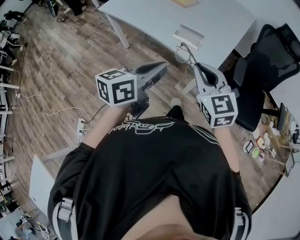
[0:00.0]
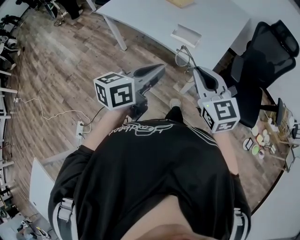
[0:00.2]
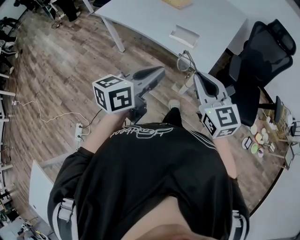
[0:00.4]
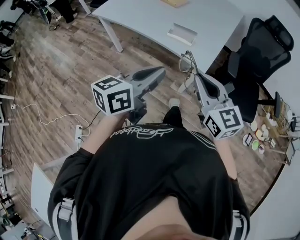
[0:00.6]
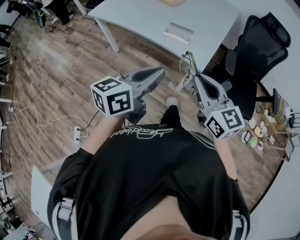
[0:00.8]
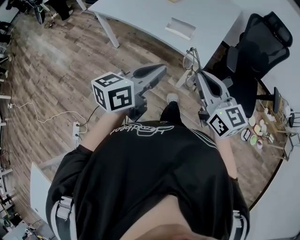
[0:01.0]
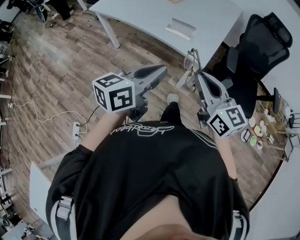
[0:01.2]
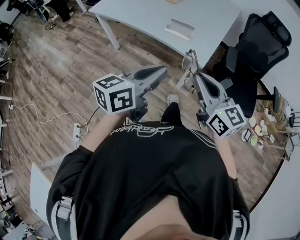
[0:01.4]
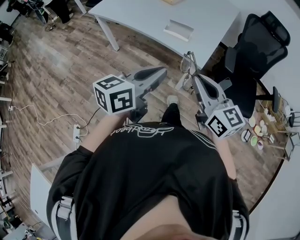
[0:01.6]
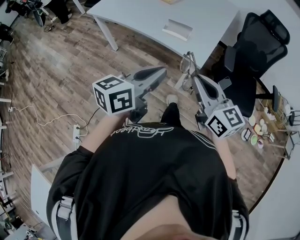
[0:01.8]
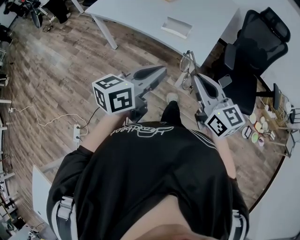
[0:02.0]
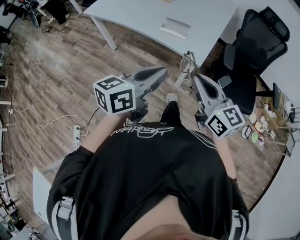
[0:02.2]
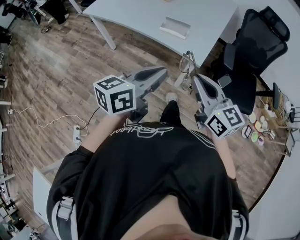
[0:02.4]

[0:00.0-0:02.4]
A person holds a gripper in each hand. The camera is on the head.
0:00.0 to 0:01.2: Both grippers travel together backward, roughly 10 cm. The right gripper rotates approximately 20 degrees.
0:01.2 to 0:02.4: The grippers move only a little.

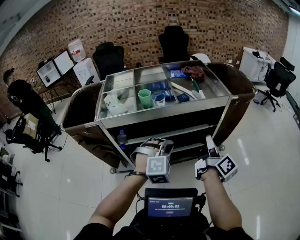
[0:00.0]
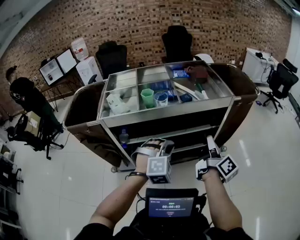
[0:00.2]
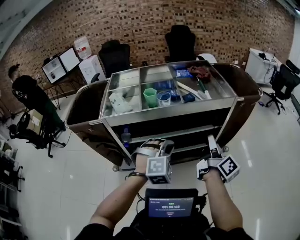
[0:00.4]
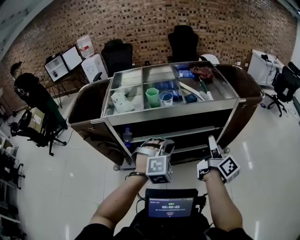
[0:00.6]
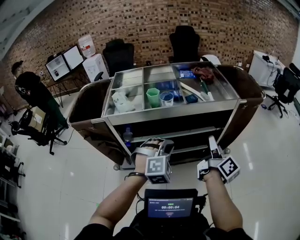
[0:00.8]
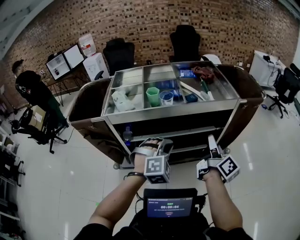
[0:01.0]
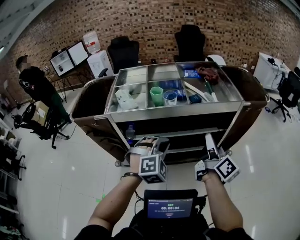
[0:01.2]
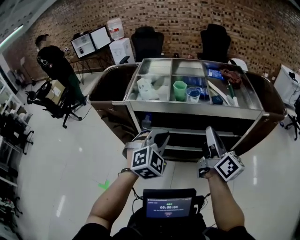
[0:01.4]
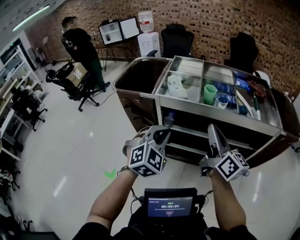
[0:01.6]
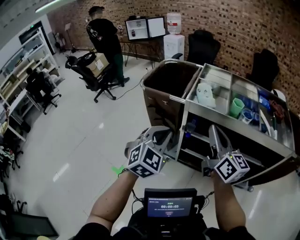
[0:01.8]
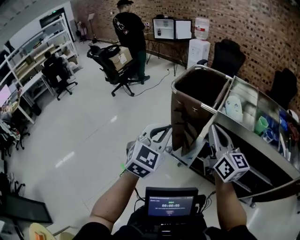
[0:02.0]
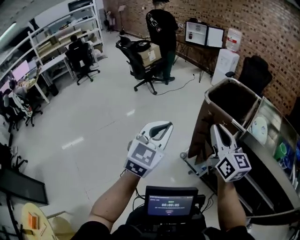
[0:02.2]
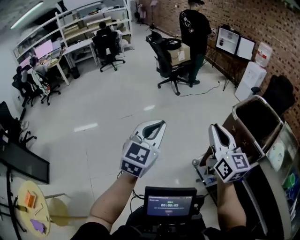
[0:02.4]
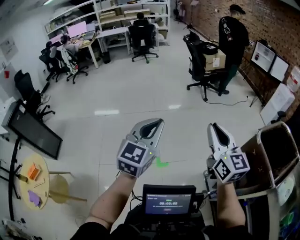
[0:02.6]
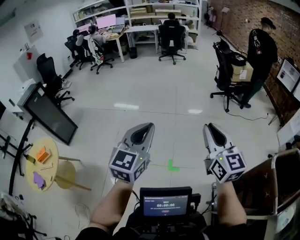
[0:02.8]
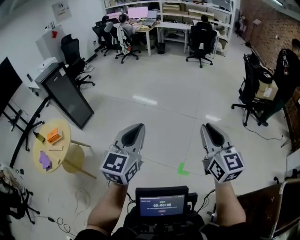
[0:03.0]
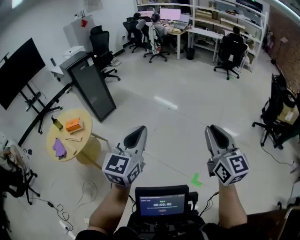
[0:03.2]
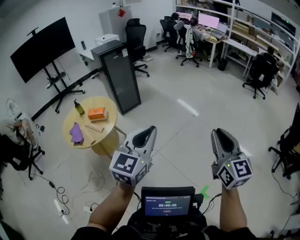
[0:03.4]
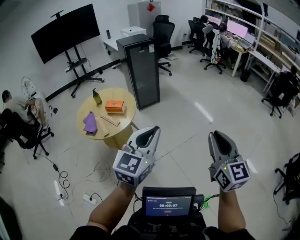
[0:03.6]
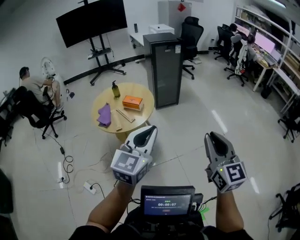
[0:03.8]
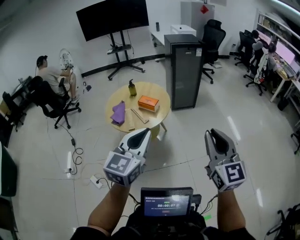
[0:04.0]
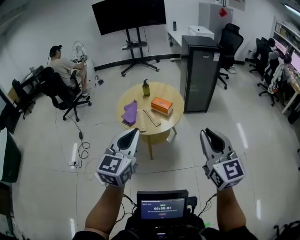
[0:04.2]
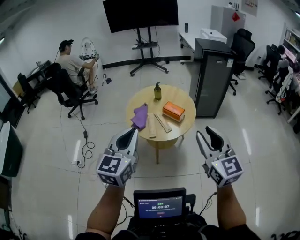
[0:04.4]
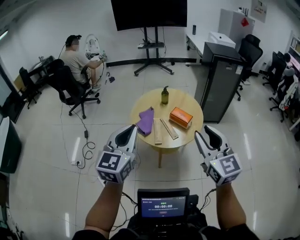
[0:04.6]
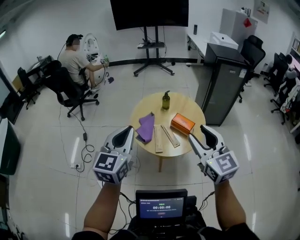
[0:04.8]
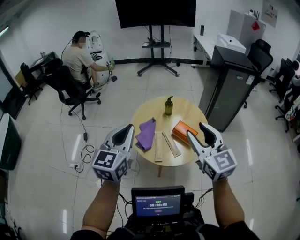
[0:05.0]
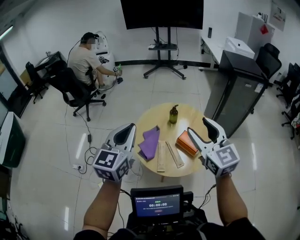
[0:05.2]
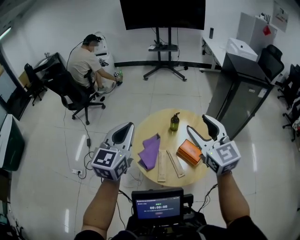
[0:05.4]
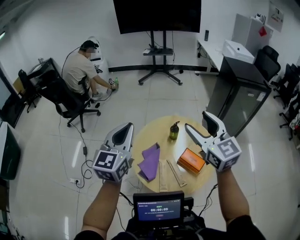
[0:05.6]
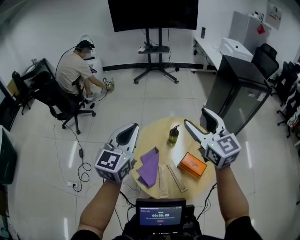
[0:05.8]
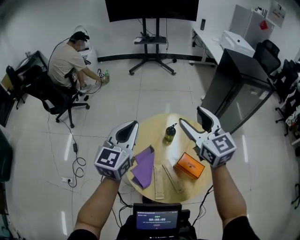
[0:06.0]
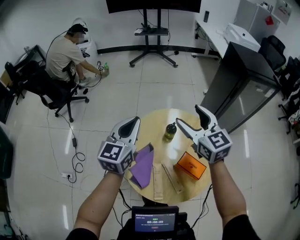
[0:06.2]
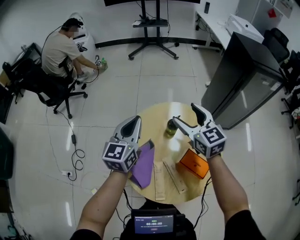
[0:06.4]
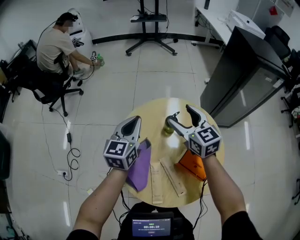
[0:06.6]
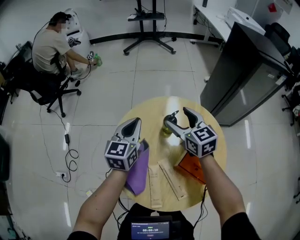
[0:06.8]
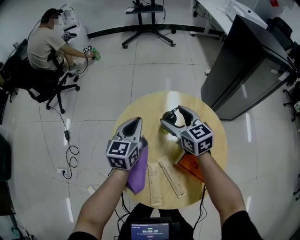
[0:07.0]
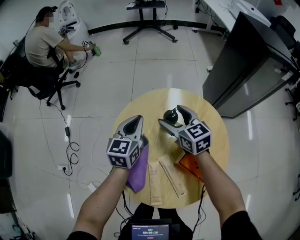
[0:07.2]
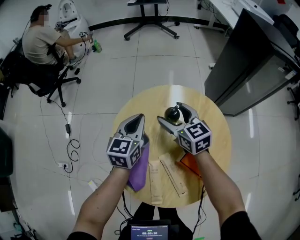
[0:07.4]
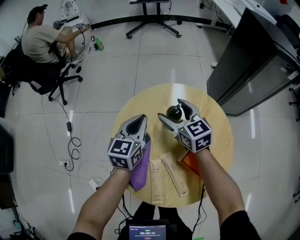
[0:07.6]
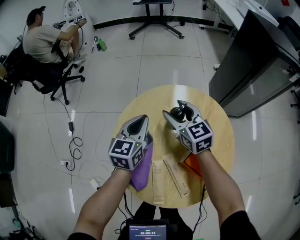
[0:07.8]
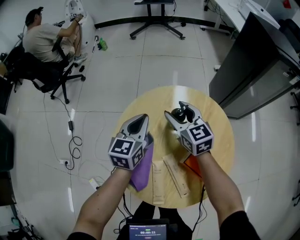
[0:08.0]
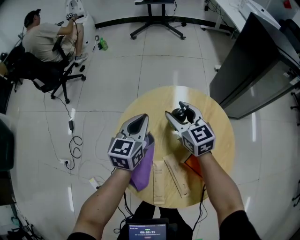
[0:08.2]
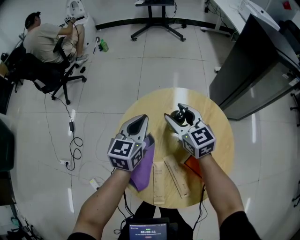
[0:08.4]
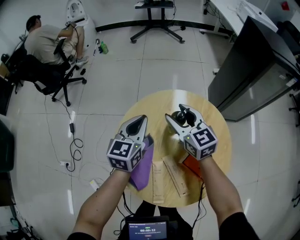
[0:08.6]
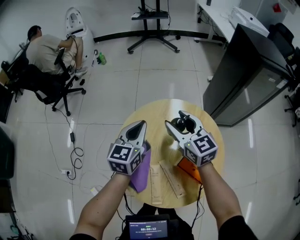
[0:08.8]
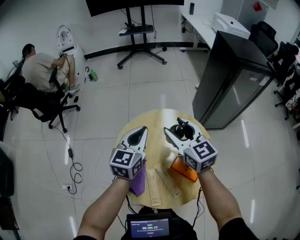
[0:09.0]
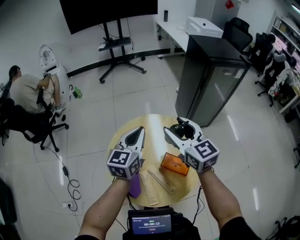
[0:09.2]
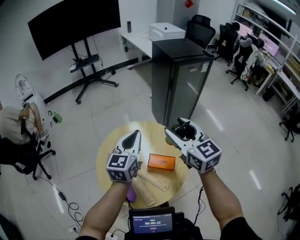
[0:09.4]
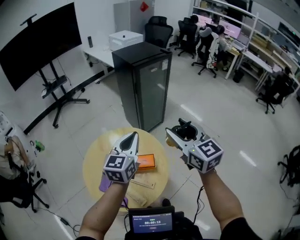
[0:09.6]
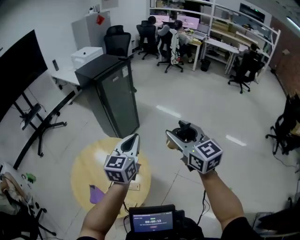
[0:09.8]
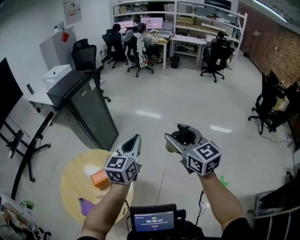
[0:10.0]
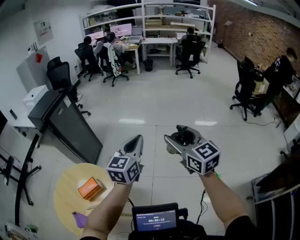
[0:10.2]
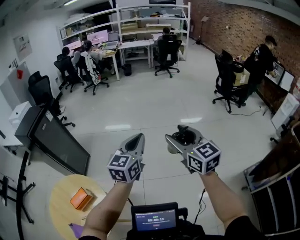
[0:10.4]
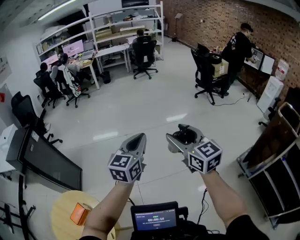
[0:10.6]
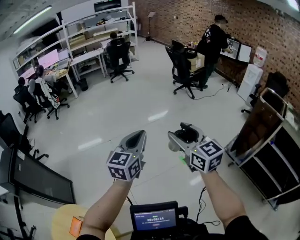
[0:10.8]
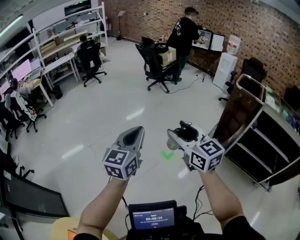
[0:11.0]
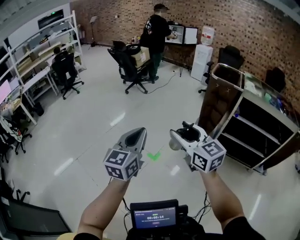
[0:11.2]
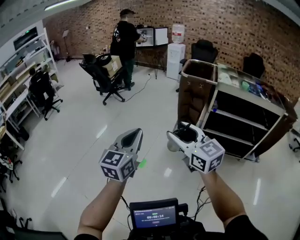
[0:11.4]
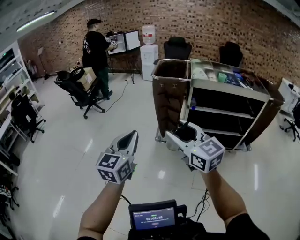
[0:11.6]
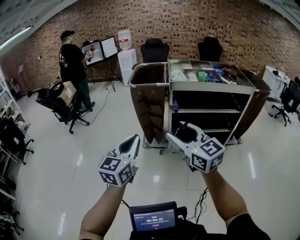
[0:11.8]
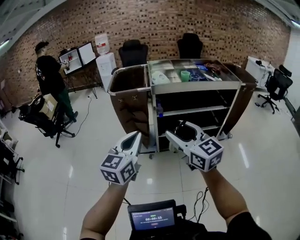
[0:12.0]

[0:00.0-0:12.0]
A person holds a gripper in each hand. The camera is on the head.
0:00.0 to 0:01.6: The left gripper moves about 30 cm, and changes its angle by about 40 degrees. The right gripper ends up roughly 35 cm from where it was, and rotates approximately 40 degrees.
0:01.6 to 0:03.0: Both grippers are carried approximately 1 m. The right gripper changes its angle by approximately 90 degrees; the left gripper swivels roughly 110 degrees.
0:03.0 to 0:04.4: The two grippers travel together, some 1 m. The left gripper swivels roughly 70 degrees. Meanwhile the right gripper rotates about 70 degrees.
0:04.4 to 0:06.0: The two grippers travel together, forward, approximately 1 m. The right gripper opens up.
0:06.0 to 0:07.6: The two grippers go about 50 cm downward and forward.
0:07.6 to 0:09.0: The two grippers go some 30 cm upward. The right gripper closes its fingers.
0:09.0 to 0:10.4: The two grippers travel together, some 1 m. The right gripper swivels some 90 degrees. Meanwhile the left gripper rotates some 90 degrees.
0:10.4 to 0:12.0: Both grippers are carried approximately 1 m. The left gripper turns by approximately 90 degrees. The right gripper rotates approximately 80 degrees.

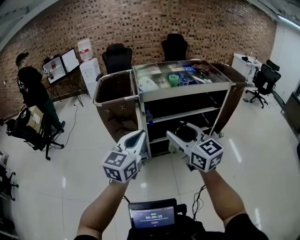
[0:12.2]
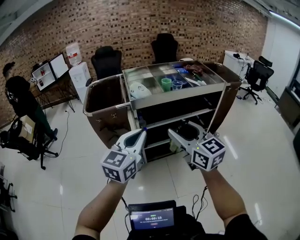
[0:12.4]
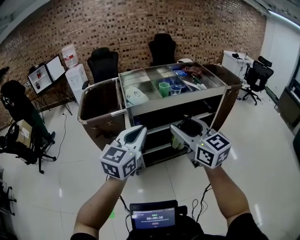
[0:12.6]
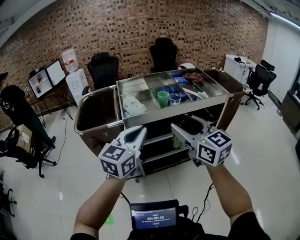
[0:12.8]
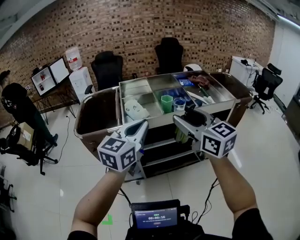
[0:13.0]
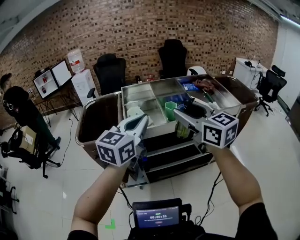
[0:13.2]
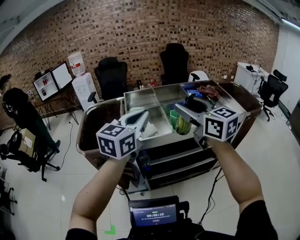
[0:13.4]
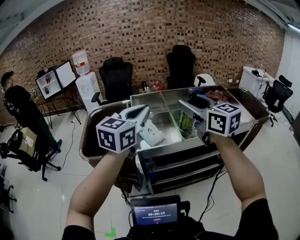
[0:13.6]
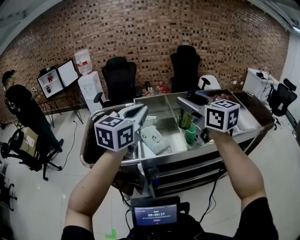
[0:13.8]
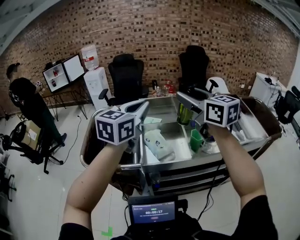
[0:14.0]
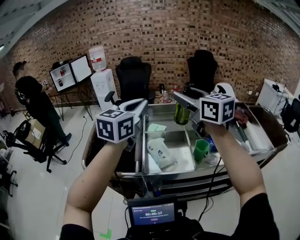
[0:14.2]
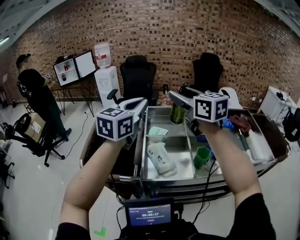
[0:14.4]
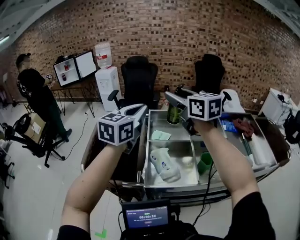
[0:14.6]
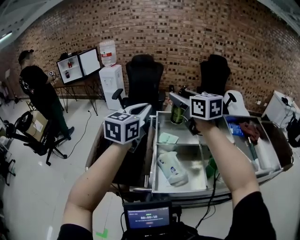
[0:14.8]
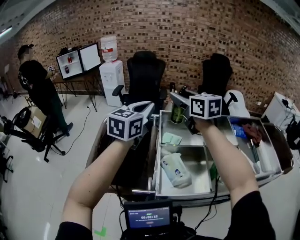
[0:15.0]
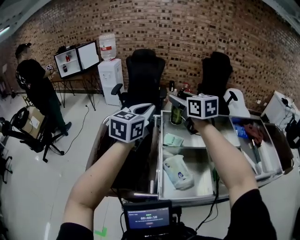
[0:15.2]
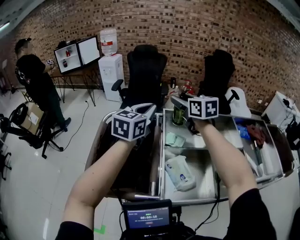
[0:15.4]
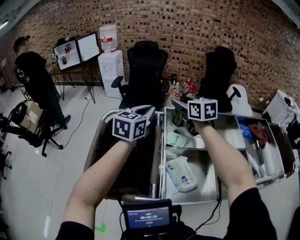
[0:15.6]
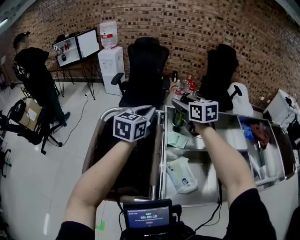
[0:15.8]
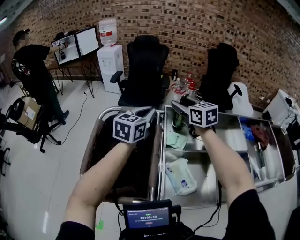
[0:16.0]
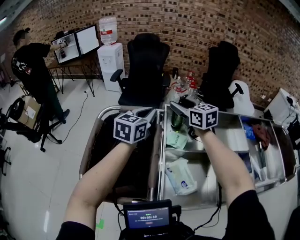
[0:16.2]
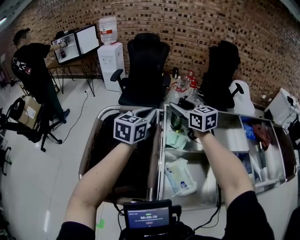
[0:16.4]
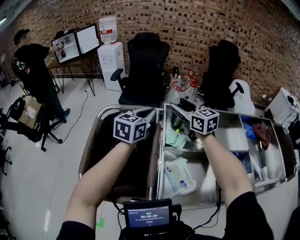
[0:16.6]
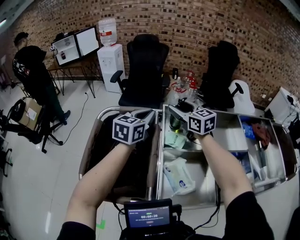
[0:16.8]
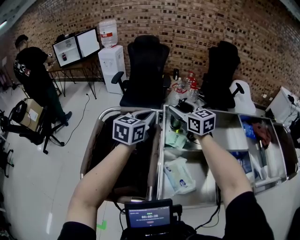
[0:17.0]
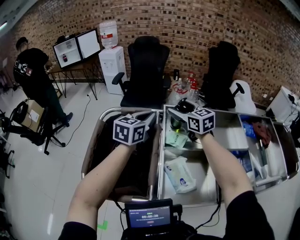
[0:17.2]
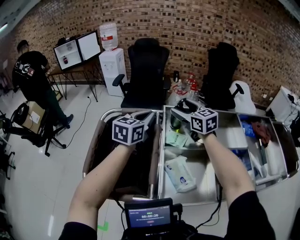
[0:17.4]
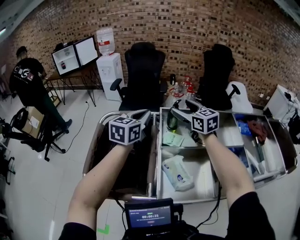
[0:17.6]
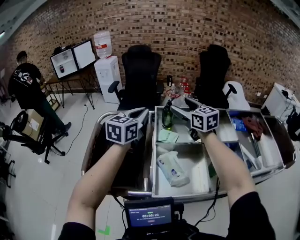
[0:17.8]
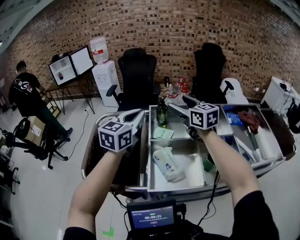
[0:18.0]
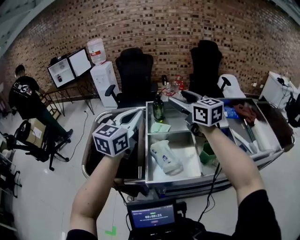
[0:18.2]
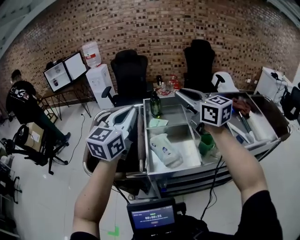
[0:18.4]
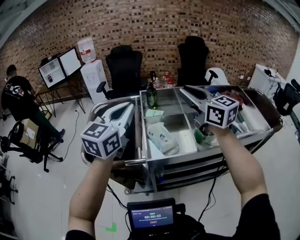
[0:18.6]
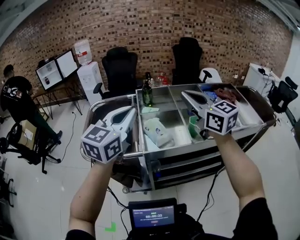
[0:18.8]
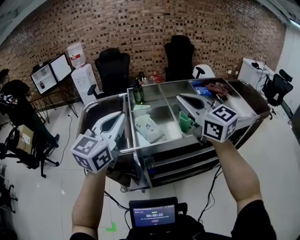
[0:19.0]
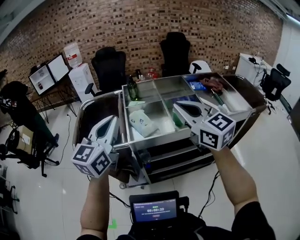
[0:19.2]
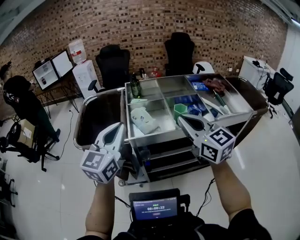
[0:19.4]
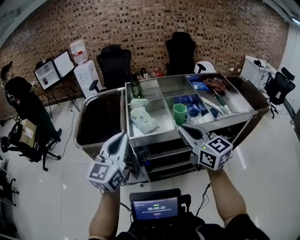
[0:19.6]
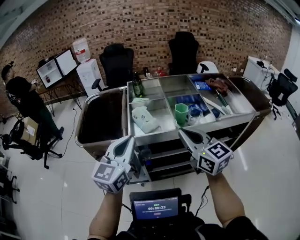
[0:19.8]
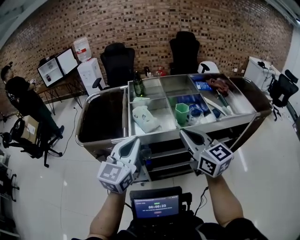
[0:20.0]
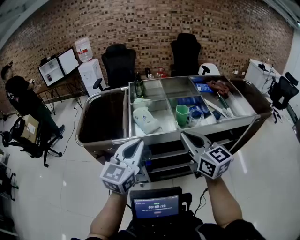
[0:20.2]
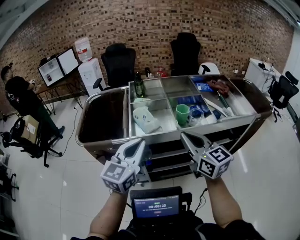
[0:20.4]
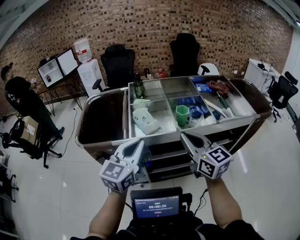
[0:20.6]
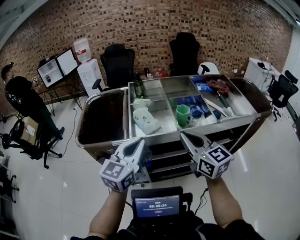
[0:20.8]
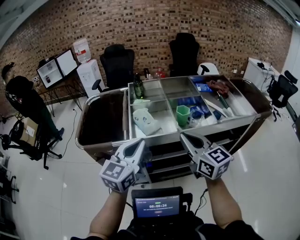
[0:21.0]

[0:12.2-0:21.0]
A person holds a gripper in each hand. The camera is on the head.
0:12.2 to 0:13.6: The pair of grippers is taken forward, approximately 80 cm.
0:13.6 to 0:15.2: The pair of grippers is taken forward and to the left, roughly 60 cm.
0:15.2 to 0:16.6: The left gripper goes some 20 cm forward and downward. Meanwhile the right gripper goes approximately 20 cm downward and forward.
0:16.6 to 0:18.0: Both grippers travel together backward, to the right and upward, approximately 25 cm.
0:18.0 to 0:19.6: The pair of grippers is taken backward, some 60 cm. The right gripper closes its fingers.
0:19.6 to 0:21.0: The left gripper shifts by about 5 cm.
